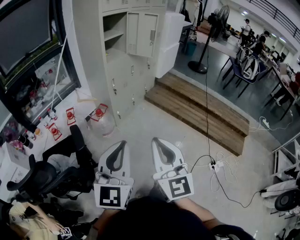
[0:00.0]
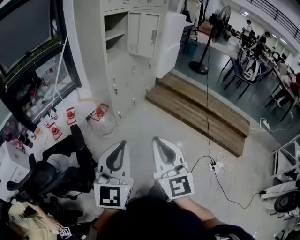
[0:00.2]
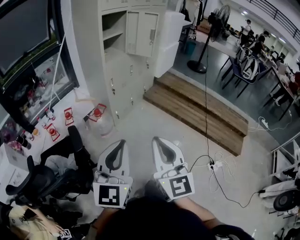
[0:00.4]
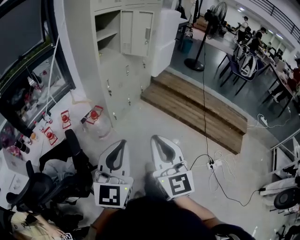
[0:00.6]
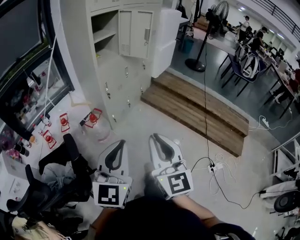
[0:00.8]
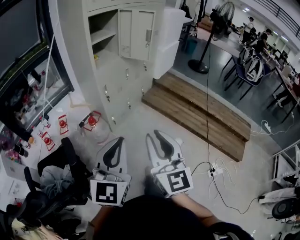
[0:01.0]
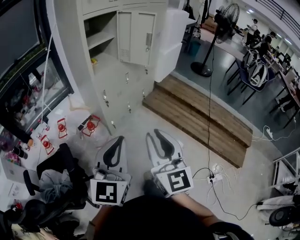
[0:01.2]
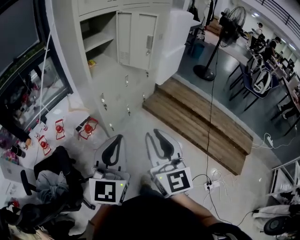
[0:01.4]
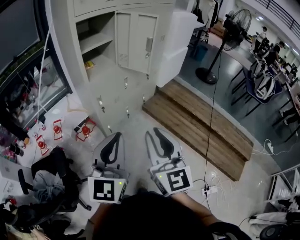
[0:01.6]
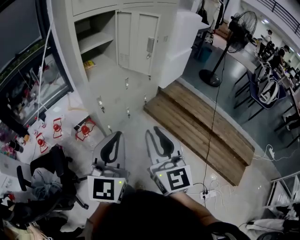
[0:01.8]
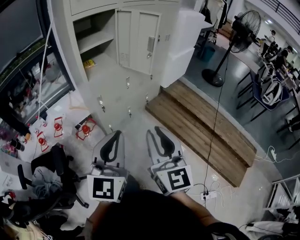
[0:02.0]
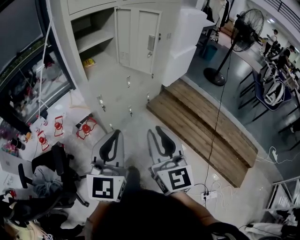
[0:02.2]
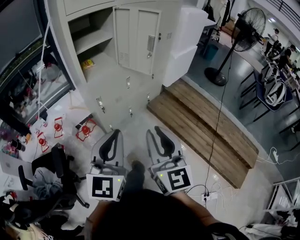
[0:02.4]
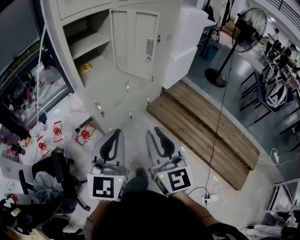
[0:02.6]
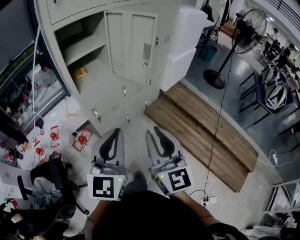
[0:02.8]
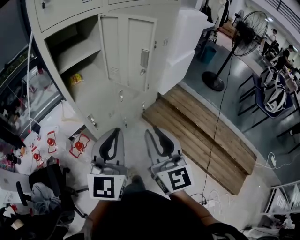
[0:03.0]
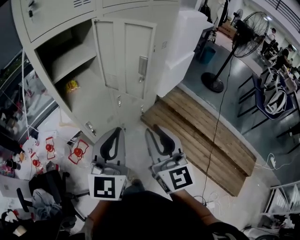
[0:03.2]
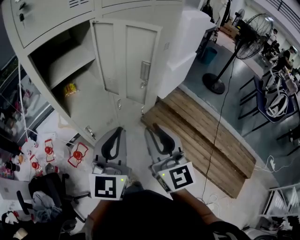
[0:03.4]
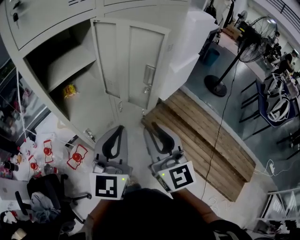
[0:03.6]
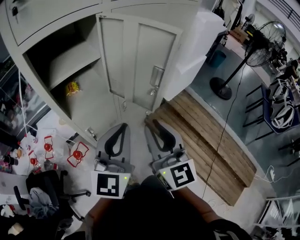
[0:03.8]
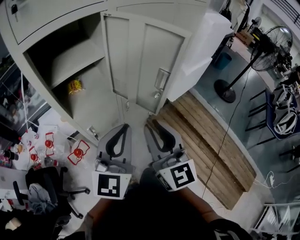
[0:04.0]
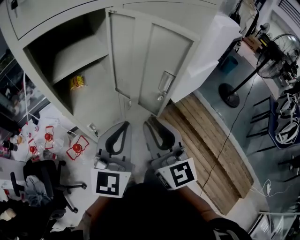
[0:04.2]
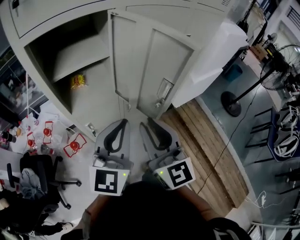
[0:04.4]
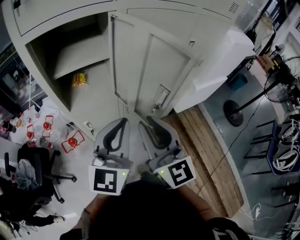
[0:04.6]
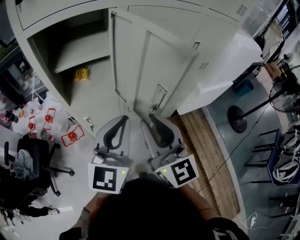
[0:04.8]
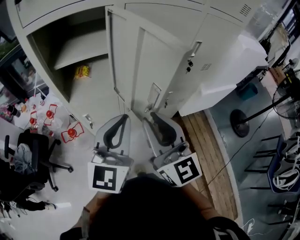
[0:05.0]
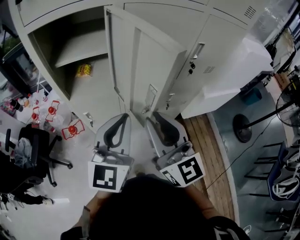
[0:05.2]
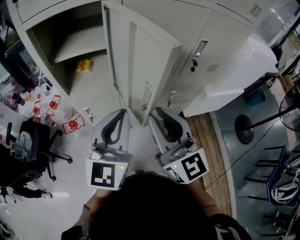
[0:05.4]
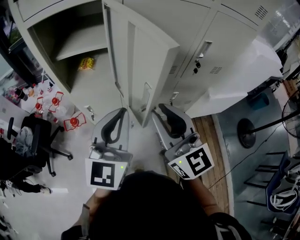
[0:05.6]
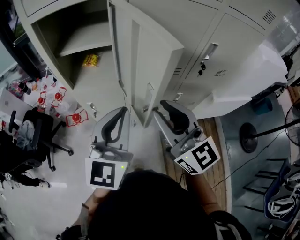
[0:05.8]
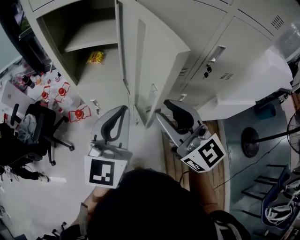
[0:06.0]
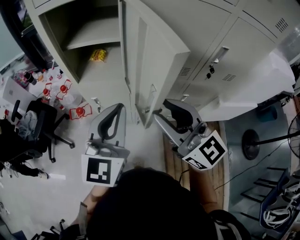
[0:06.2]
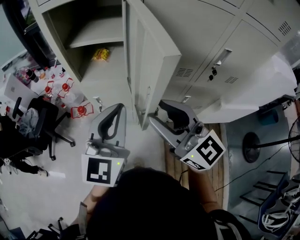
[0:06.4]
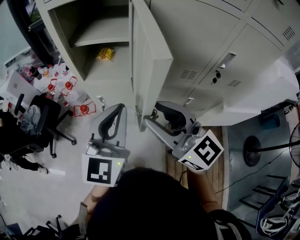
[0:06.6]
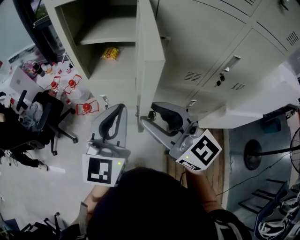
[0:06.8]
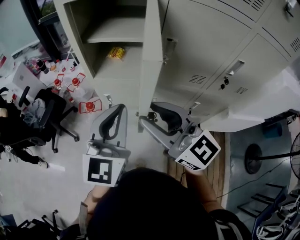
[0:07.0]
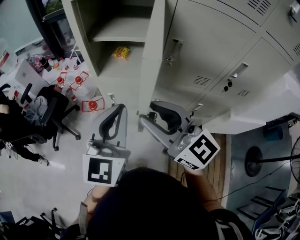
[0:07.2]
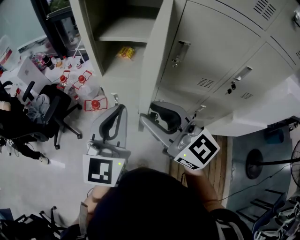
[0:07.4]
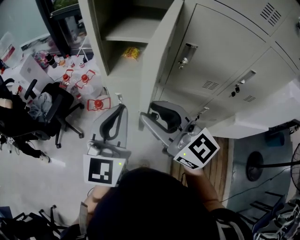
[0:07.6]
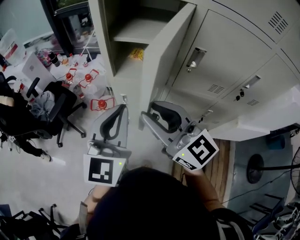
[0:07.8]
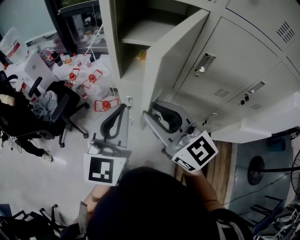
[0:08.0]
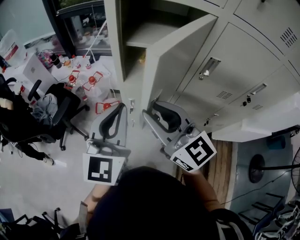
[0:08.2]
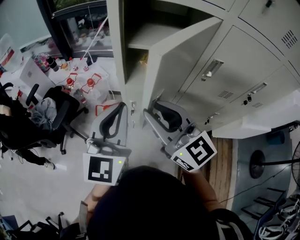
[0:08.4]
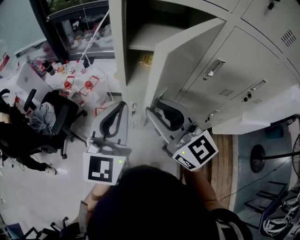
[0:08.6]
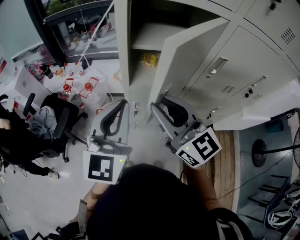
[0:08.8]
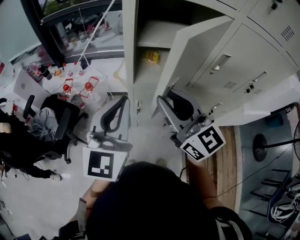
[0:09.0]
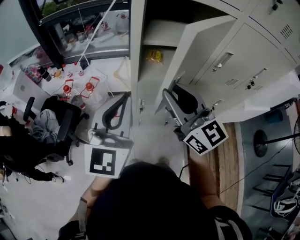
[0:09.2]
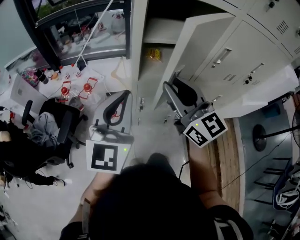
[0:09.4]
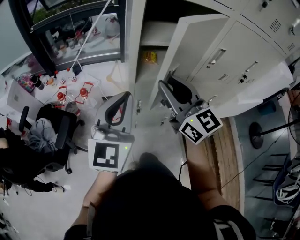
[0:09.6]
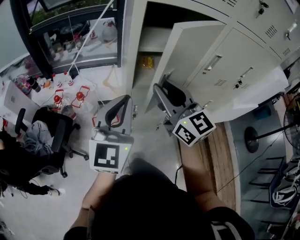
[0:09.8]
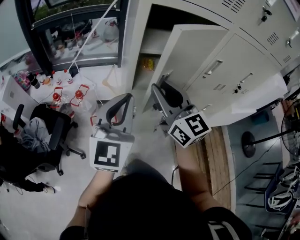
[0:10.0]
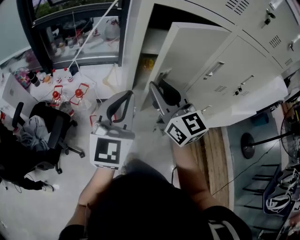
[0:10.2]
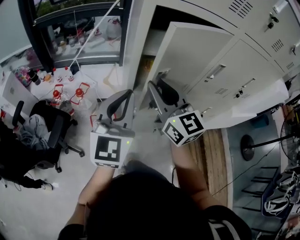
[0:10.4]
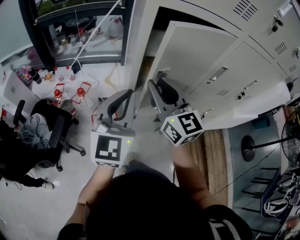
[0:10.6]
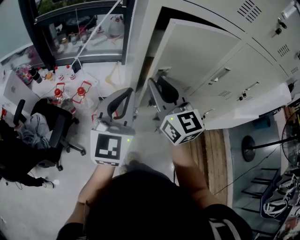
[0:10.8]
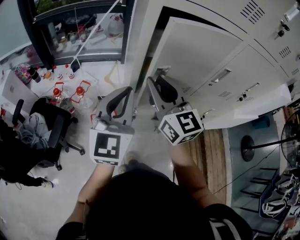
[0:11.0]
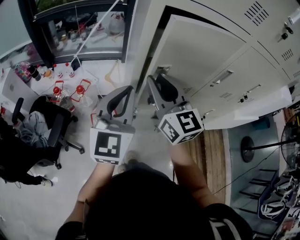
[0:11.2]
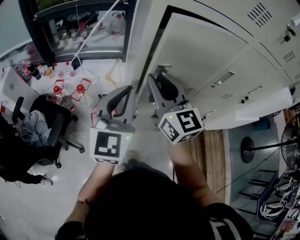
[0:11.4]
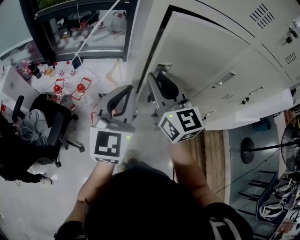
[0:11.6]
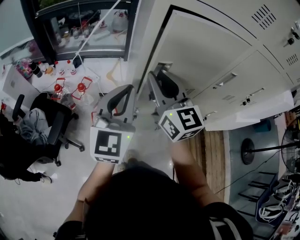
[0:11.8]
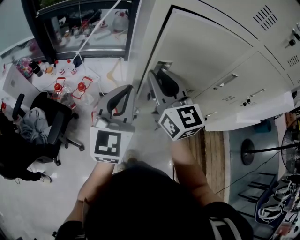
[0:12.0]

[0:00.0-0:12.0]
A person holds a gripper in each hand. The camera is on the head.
0:00.0 to 0:01.6: Both grippers move forward, about 30 cm.
0:01.6 to 0:03.0: The grippers both shift forward by some 20 cm.
0:03.0 to 0:04.4: Both grippers travel together forward, approximately 20 cm. The right gripper changes its angle by roughly 20 degrees.
0:04.4 to 0:06.0: The left gripper changes place by approximately 10 cm, and turns by some 20 degrees. Meanwhile the right gripper moves some 10 cm, and swivels about 40 degrees.
0:06.0 to 0:07.6: The two grippers go approximately 10 cm to the left. The right gripper changes its angle by about 20 degrees.
0:07.6 to 0:09.0: The left gripper heads to the left and forward, covering some 20 cm. The right gripper goes about 15 cm forward and to the left, and turns by roughly 20 degrees.
0:09.0 to 0:10.4: The right gripper is displaced forward by some 5 cm.
0:10.4 to 0:12.0: Both grippers travel together forward, roughly 5 cm.

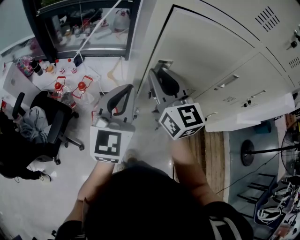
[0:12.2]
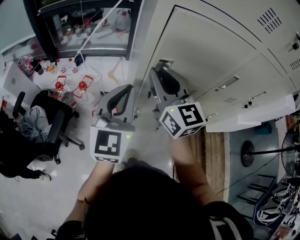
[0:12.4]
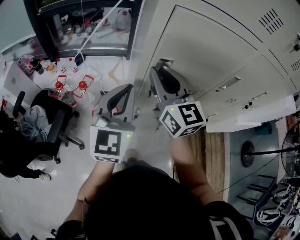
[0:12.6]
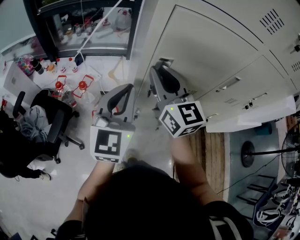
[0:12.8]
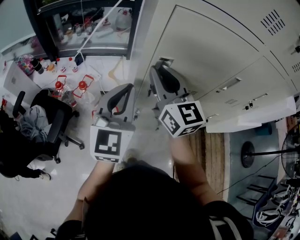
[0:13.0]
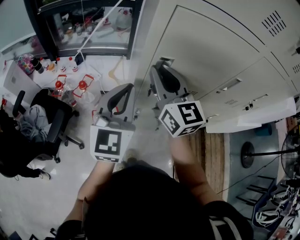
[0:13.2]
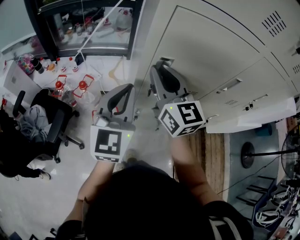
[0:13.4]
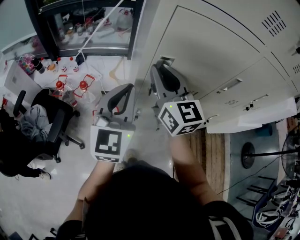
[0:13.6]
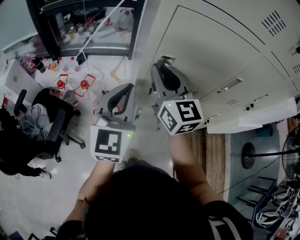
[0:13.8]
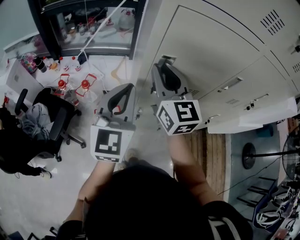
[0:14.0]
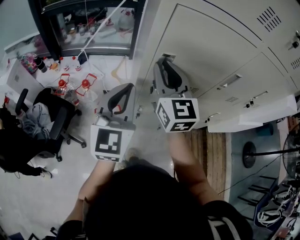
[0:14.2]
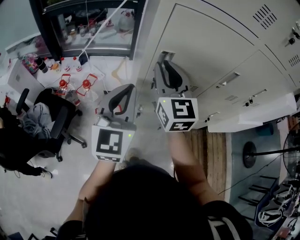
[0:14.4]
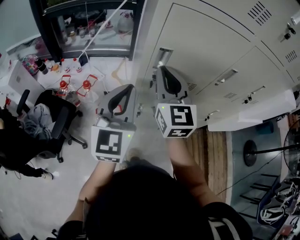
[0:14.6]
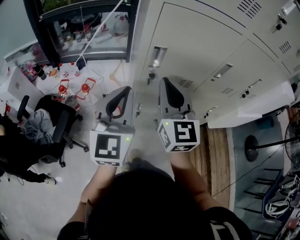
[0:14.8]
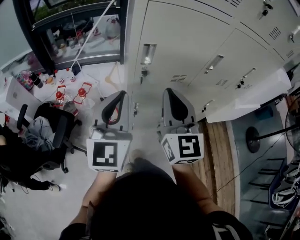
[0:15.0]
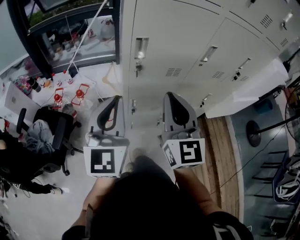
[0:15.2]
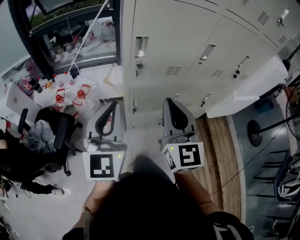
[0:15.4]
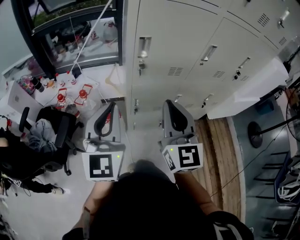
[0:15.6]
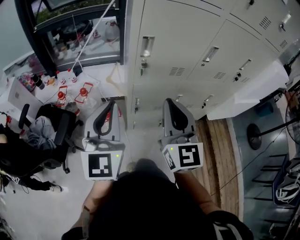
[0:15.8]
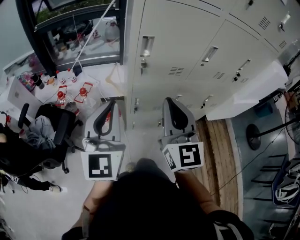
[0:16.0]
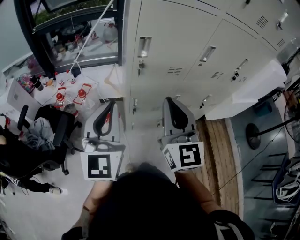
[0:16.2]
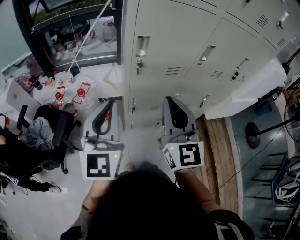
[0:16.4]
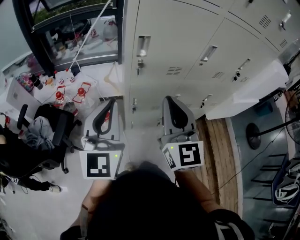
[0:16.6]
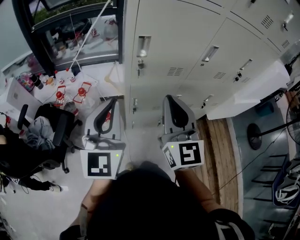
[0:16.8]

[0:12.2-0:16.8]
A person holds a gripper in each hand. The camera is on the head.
0:12.2 to 0:13.8: The grippers move only a little.
0:13.8 to 0:15.2: The left gripper moves backward, approximately 10 cm. The right gripper moves backward, approximately 20 cm, and turns by roughly 20 degrees.
0:15.2 to 0:16.8: The grippers make only small movements.

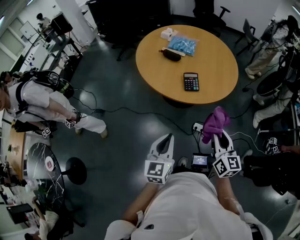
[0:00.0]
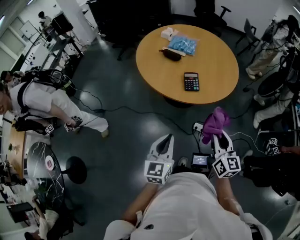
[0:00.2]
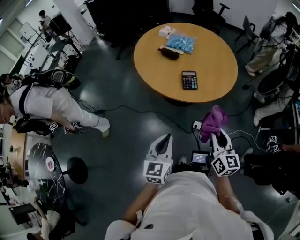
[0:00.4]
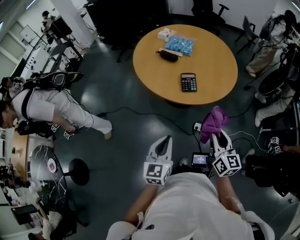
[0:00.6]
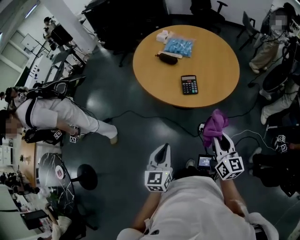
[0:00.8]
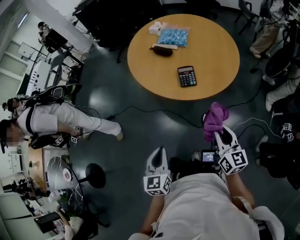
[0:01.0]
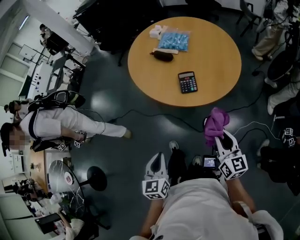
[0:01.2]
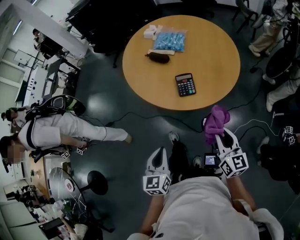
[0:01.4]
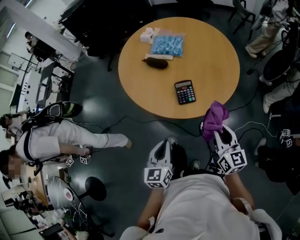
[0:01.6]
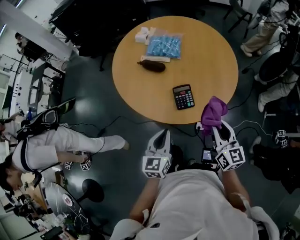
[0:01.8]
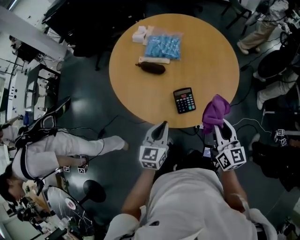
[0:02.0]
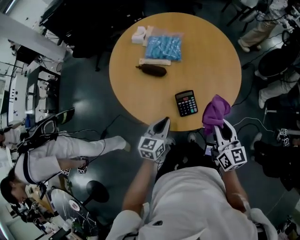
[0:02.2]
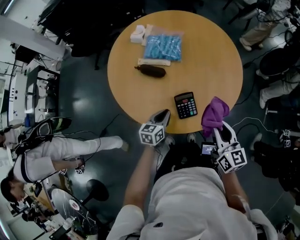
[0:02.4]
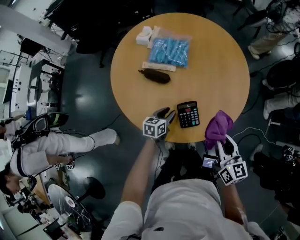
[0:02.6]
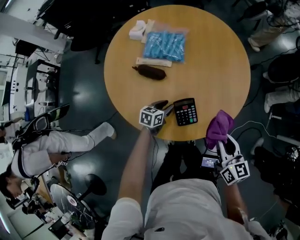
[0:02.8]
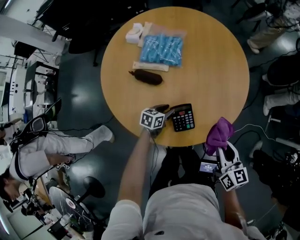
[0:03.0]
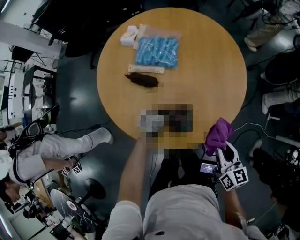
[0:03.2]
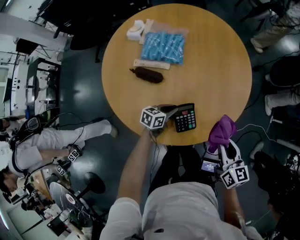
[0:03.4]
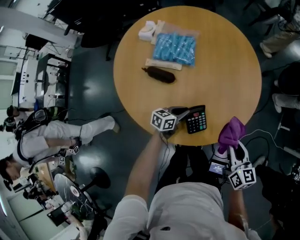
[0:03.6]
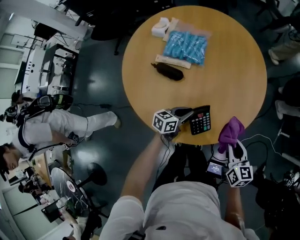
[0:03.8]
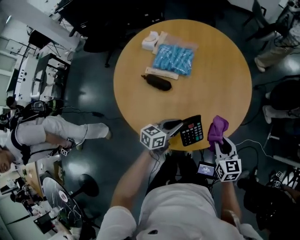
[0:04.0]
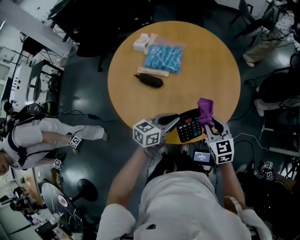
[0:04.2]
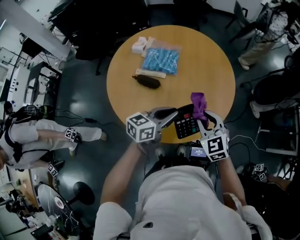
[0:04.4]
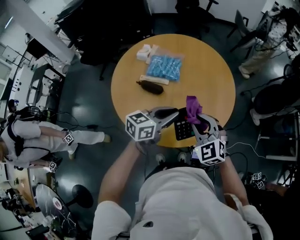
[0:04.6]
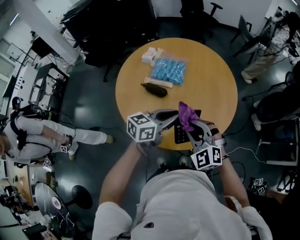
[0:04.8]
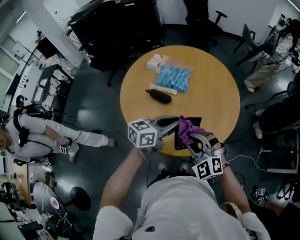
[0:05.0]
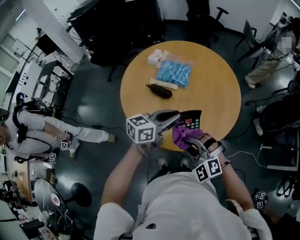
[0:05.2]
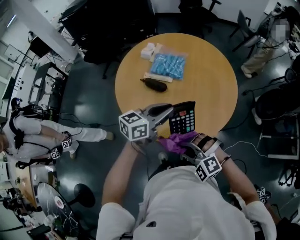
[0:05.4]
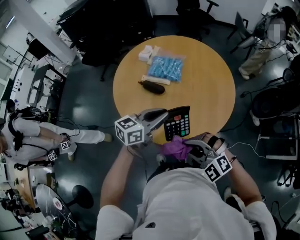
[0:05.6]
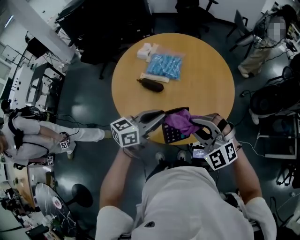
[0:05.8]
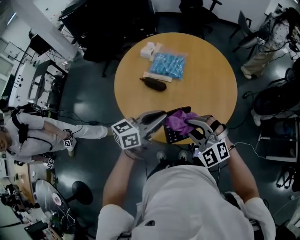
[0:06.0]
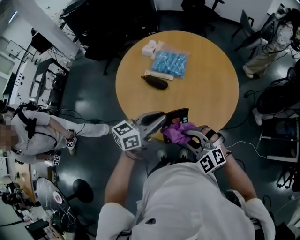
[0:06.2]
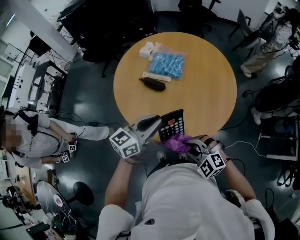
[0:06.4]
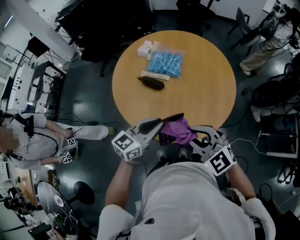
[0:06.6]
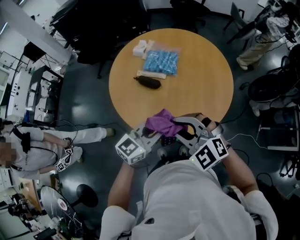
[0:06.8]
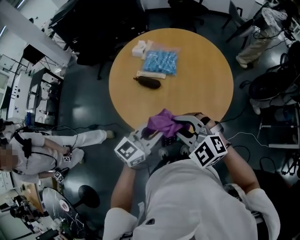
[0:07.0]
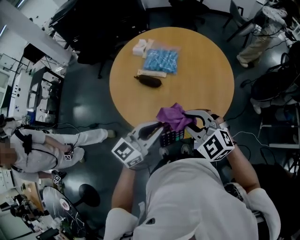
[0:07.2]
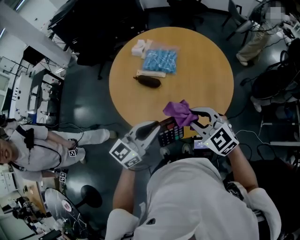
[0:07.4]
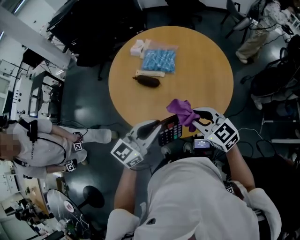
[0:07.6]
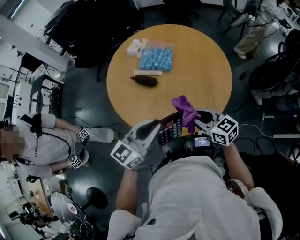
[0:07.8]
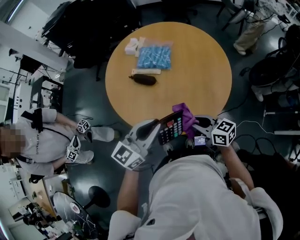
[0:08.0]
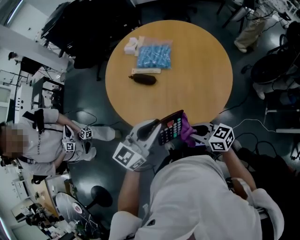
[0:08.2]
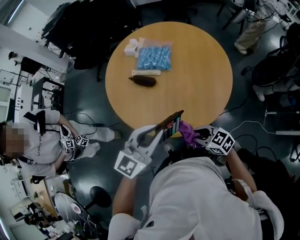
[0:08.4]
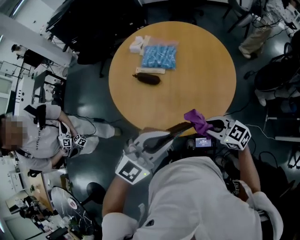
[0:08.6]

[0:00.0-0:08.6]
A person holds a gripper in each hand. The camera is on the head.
0:00.0 to 0:01.4: The right gripper heads forward, downward and to the right, covering approximately 15 cm. Meanwhile the left gripper goes approximately 10 cm forward and downward.
0:01.4 to 0:02.8: The left gripper changes place by about 50 cm, rotates roughly 50 degrees, and opens. The right gripper ends up roughly 20 cm from where it was.
0:02.8 to 0:04.4: The right gripper heads to the left and upward, covering about 10 cm, and rotates around the line of its fingers by about 40 degrees, counterclockwise from behind. The left gripper travels upward by roughly 25 cm, changes its angle by approximately 30 degrees, and closes its fingers.
0:04.4 to 0:05.8: The left gripper is displaced to the left and upward by approximately 10 cm; the right gripper travels upward, backward and to the left by about 15 cm, and twists some 40 degrees counterclockwise, seen from behind.
0:05.8 to 0:07.2: The right gripper travels downward and back again, some 10 cm each way, and swivels about 20 degrees. Meanwhile the left gripper heads backward, covering roughly 5 cm, and rotates roughly 20 degrees.
0:07.2 to 0:08.6: The right gripper goes roughly 15 cm to the right and downward, and changes its angle by some 40 degrees. The left gripper goes approximately 10 cm upward, to the right and backward, and changes its angle by some 40 degrees.
